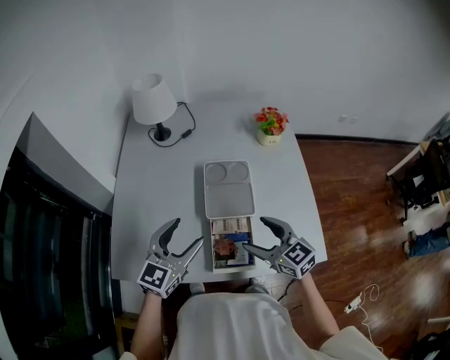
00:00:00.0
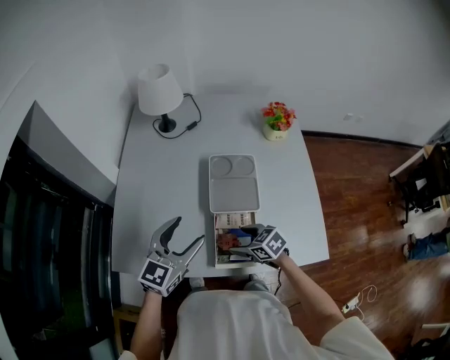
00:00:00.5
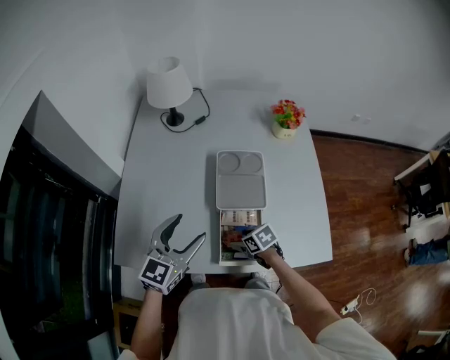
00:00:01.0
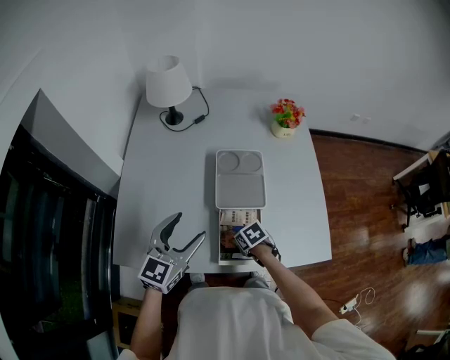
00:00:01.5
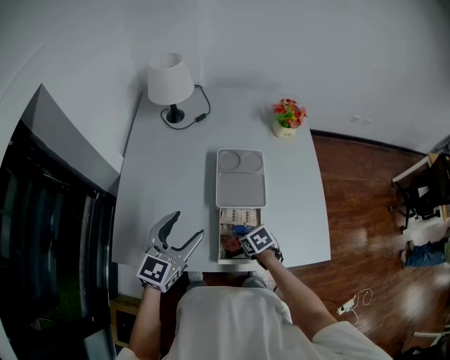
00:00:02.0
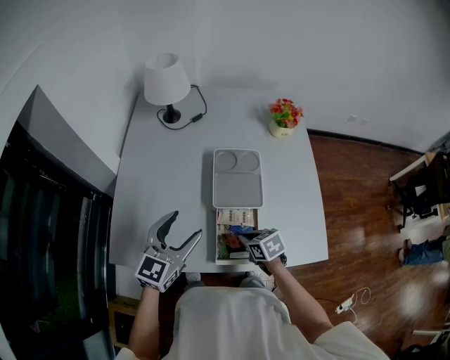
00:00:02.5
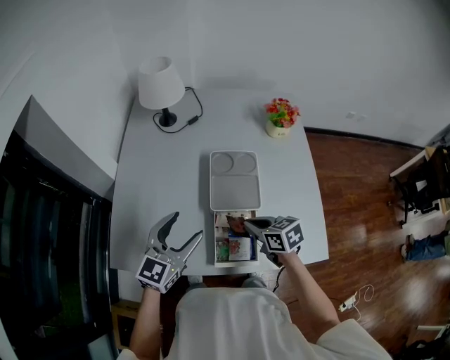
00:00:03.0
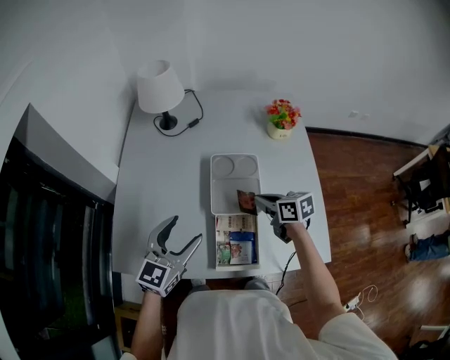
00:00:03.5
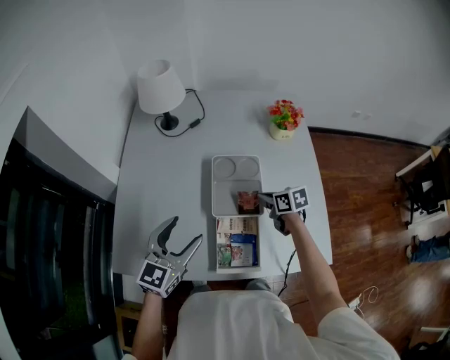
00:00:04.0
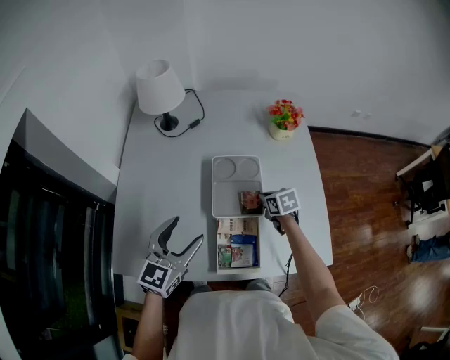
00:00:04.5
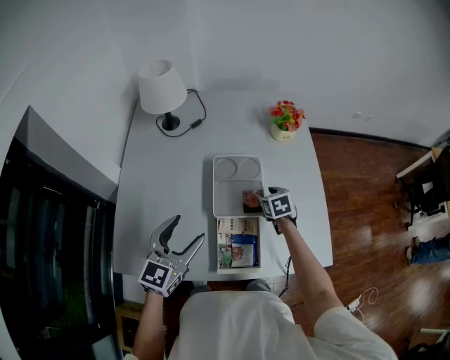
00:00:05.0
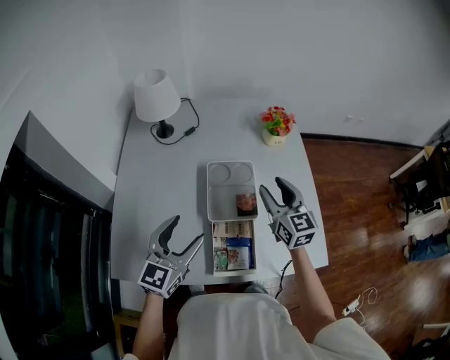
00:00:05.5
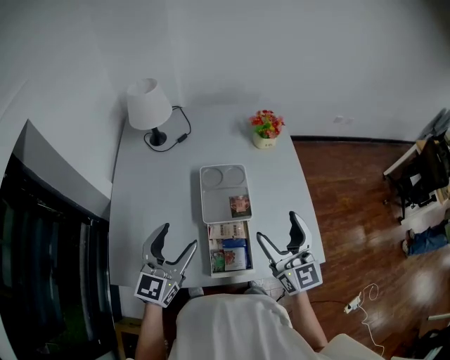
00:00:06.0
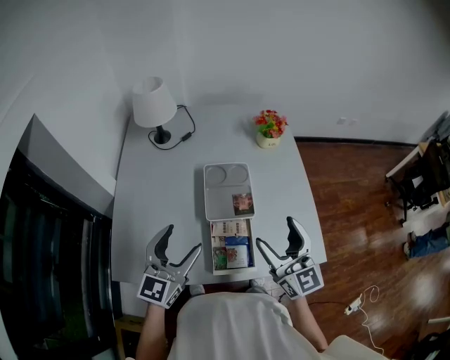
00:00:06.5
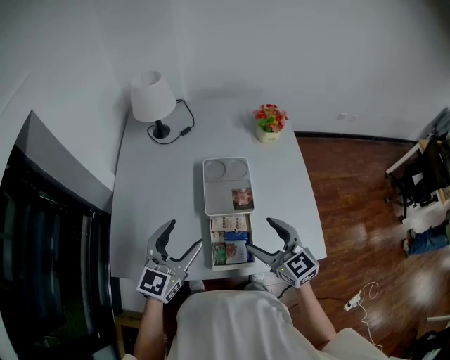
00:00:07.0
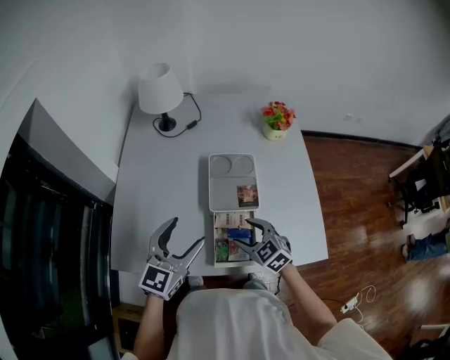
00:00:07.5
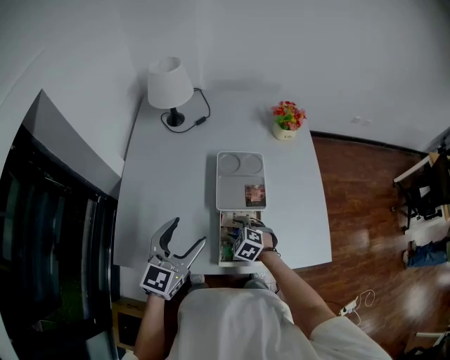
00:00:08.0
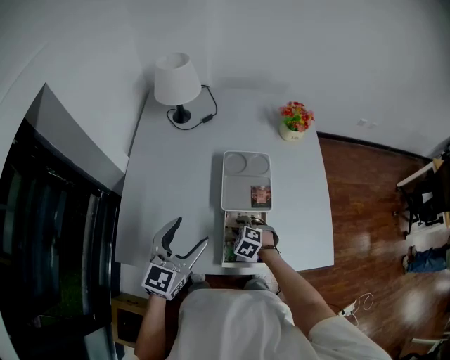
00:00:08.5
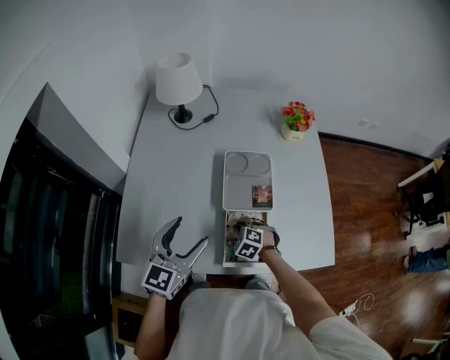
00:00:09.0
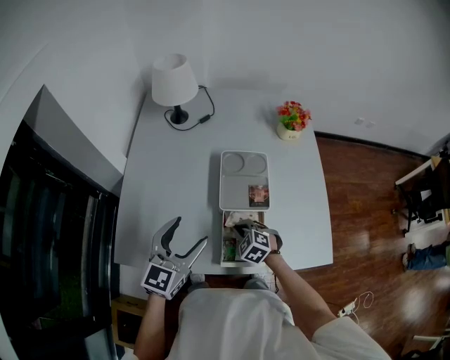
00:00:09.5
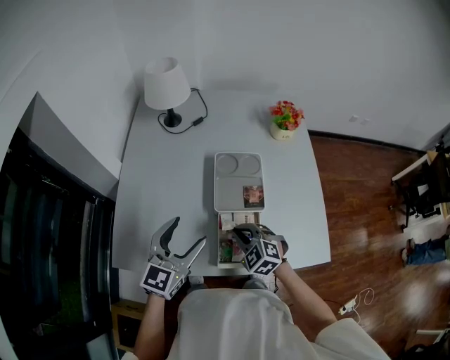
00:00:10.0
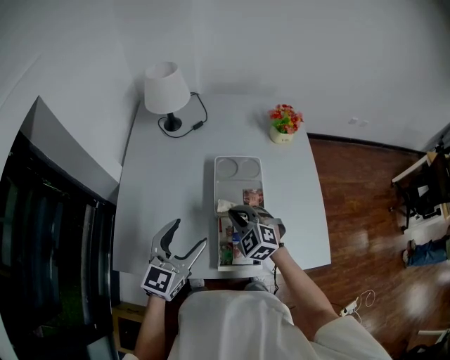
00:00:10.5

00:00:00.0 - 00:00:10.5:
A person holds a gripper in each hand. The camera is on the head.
00:00:00.0 - 00:00:02.0: The right gripper travels downward by some 25 cm, points its fingers some 40 degrees further downward, and closes.
00:00:02.0 - 00:00:04.0: The right gripper goes approximately 20 cm forward, to the right and upward, and turns by some 30 degrees.
00:00:04.0 - 00:00:06.5: The right gripper heads upward and backward, covering some 30 cm, tips its fingers upward by about 50 degrees, and opens its fingers. Meanwhile the left gripper moves roughly 5 cm.
00:00:06.5 - 00:00:08.5: The left gripper moves about 5 cm, while the right gripper heads downward, covering approximately 35 cm, tips its fingers downward by some 70 degrees, and closes its fingers.
00:00:08.5 - 00:00:10.5: The right gripper shifts some 15 cm upward, and rotates approximately 30 degrees.

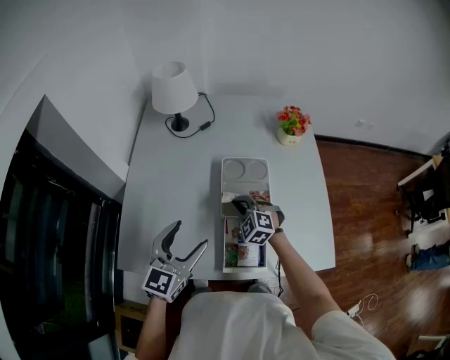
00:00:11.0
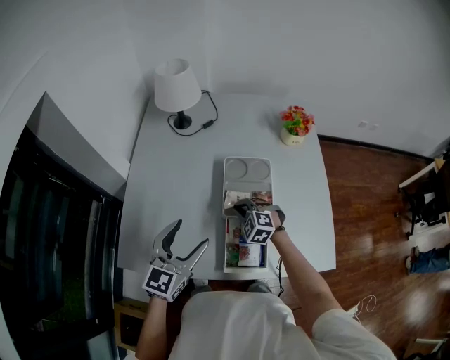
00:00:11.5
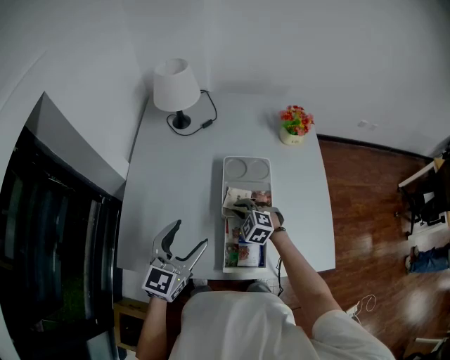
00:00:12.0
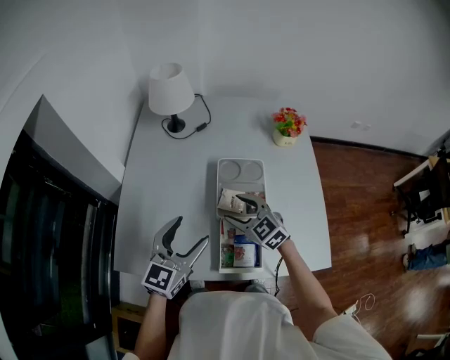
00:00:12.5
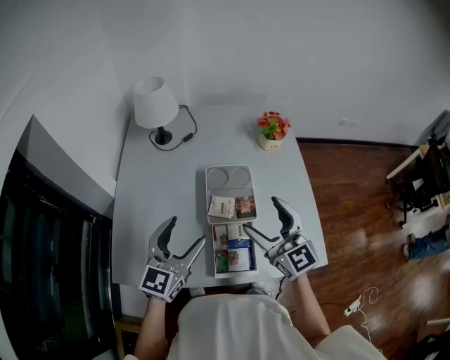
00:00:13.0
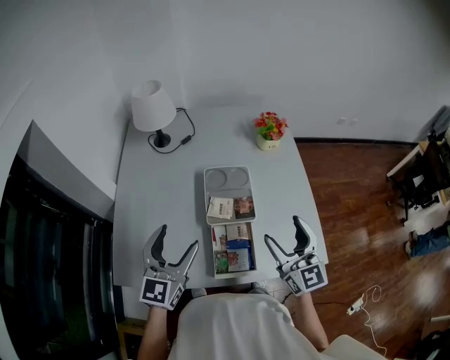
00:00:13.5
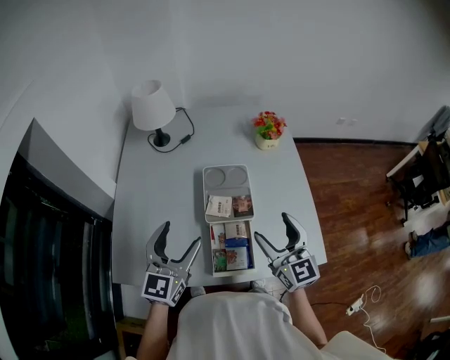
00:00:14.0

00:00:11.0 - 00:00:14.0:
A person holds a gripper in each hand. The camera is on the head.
00:00:11.0 - 00:00:12.5: The right gripper goes about 5 cm upward, turns by some 30 degrees, and opens its fingers.
00:00:12.5 - 00:00:14.0: The right gripper goes about 20 cm to the right, upward and backward, and swivels roughly 40 degrees.

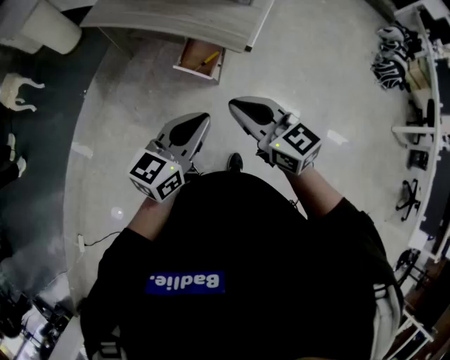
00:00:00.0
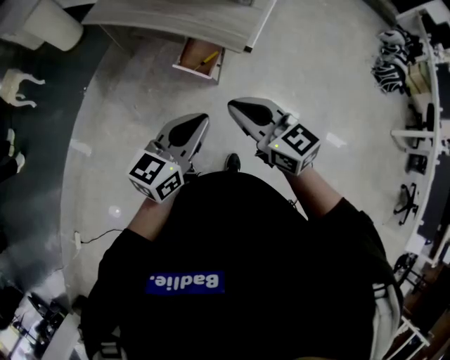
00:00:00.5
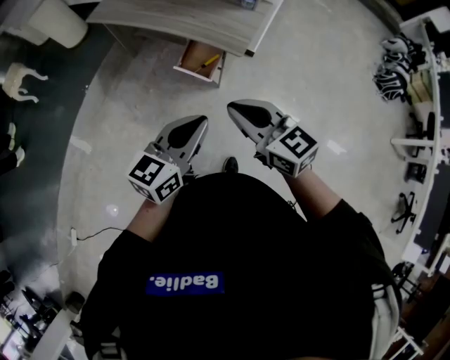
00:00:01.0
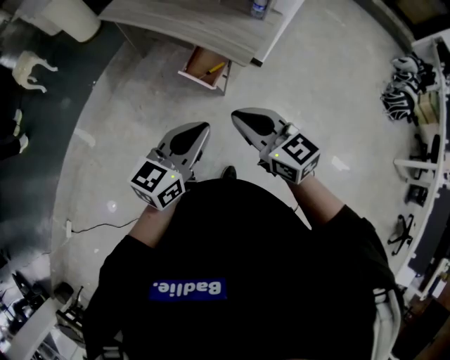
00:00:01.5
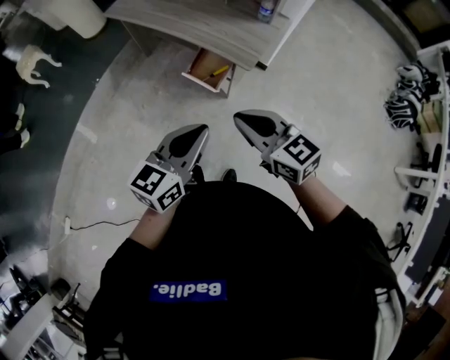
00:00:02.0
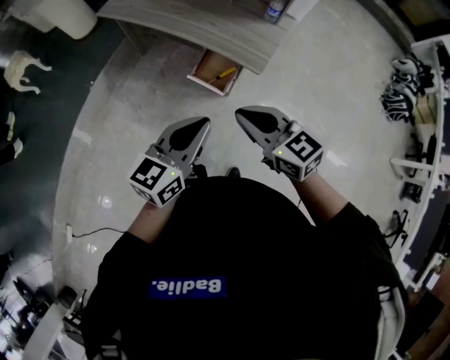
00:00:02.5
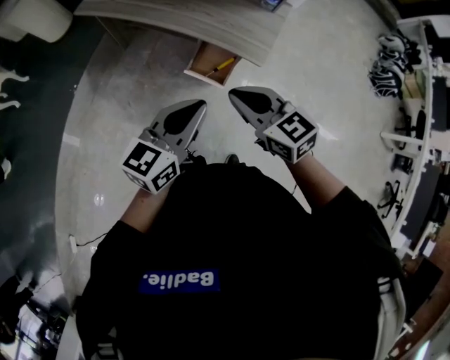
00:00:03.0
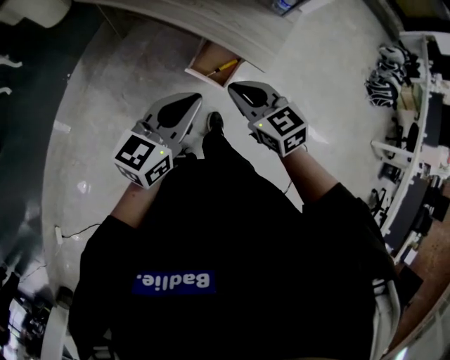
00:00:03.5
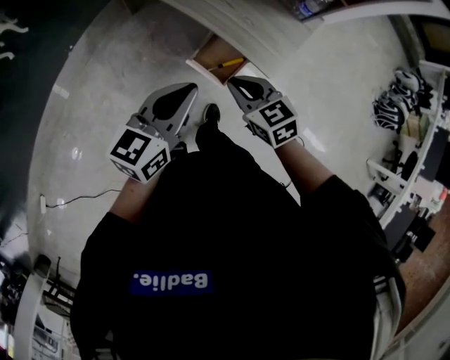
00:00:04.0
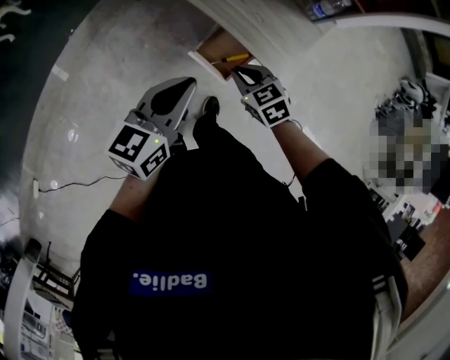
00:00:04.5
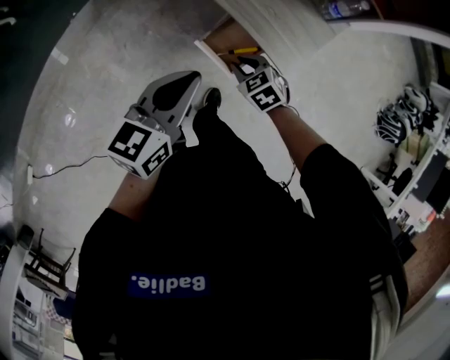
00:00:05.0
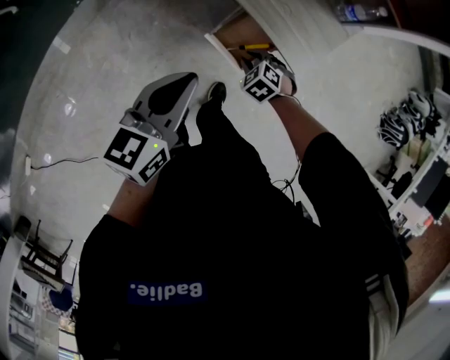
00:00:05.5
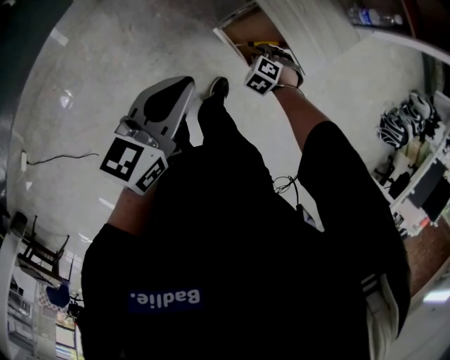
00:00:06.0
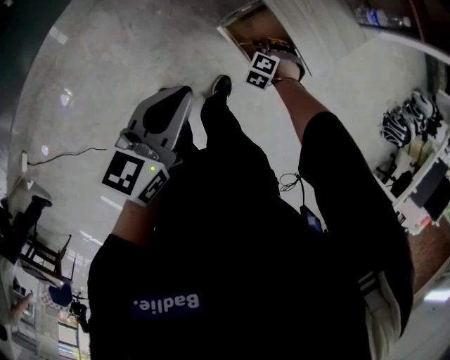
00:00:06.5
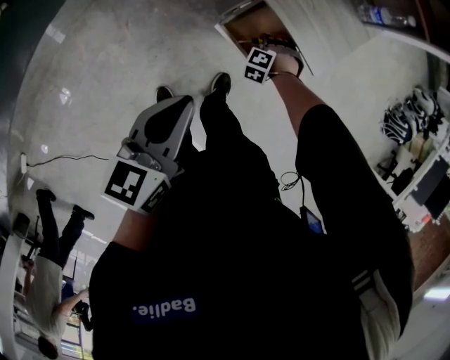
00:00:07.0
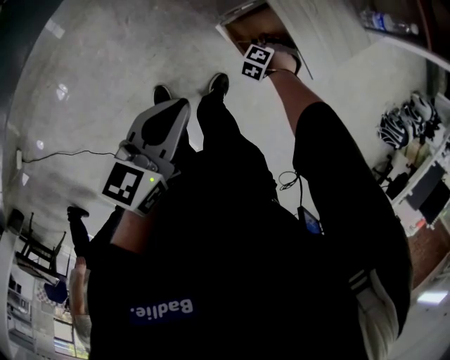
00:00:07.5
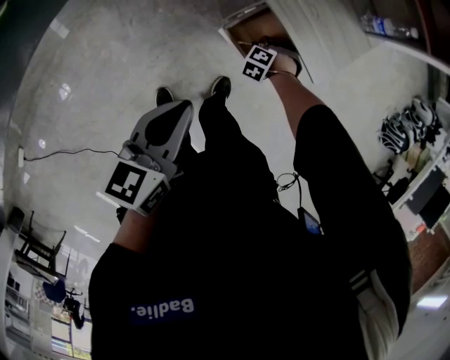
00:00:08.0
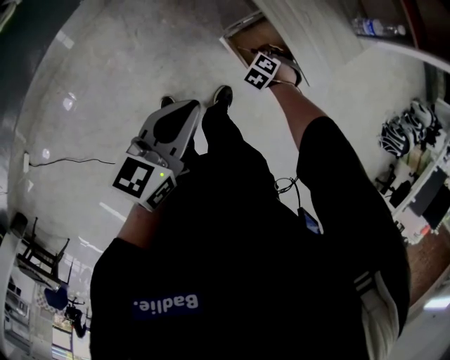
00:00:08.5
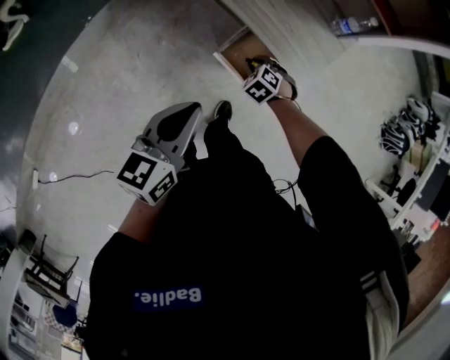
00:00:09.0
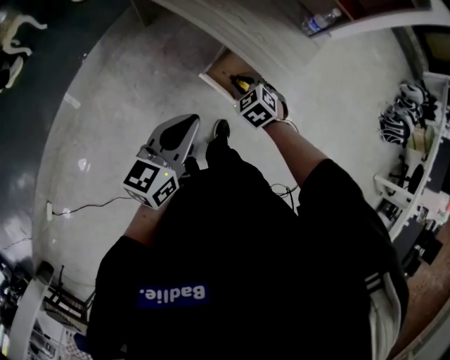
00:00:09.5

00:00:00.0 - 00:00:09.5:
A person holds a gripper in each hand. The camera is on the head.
00:00:00.0 - 00:00:02.0: The right gripper changes place by approximately 5 cm.
00:00:02.0 - 00:00:04.0: The left gripper is displaced forward and to the left by some 25 cm, while the right gripper travels forward, downward and to the left by roughly 30 cm, and turns by about 20 degrees.
00:00:04.0 - 00:00:05.5: The right gripper heads downward, covering approximately 25 cm, and turns by about 40 degrees. The left gripper goes about 5 cm downward.
00:00:05.5 - 00:00:07.5: The left gripper shifts some 5 cm downward. Meanwhile the right gripper shifts some 15 cm downward, and rotates approximately 40 degrees.
00:00:07.5 - 00:00:09.5: The left gripper shifts some 10 cm upward. Meanwhile the right gripper is displaced upward by about 25 cm, and swivels some 50 degrees.

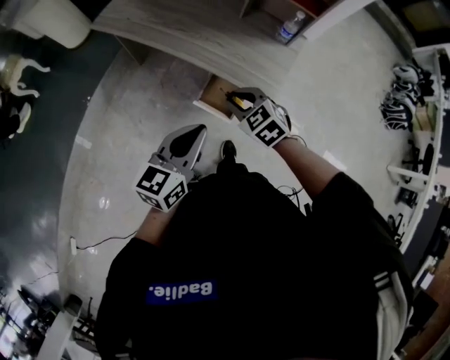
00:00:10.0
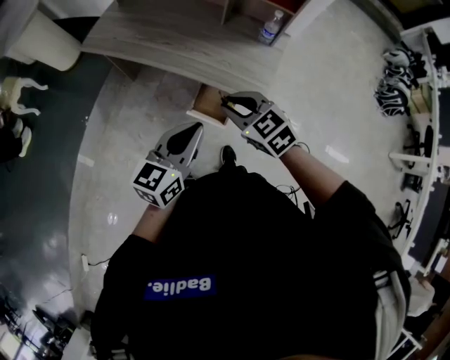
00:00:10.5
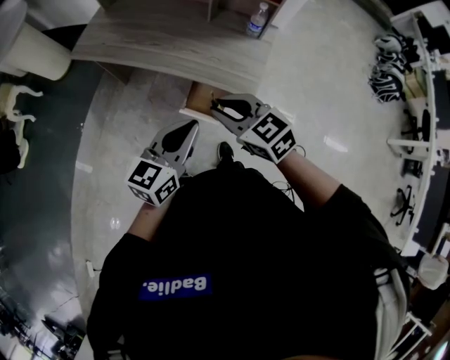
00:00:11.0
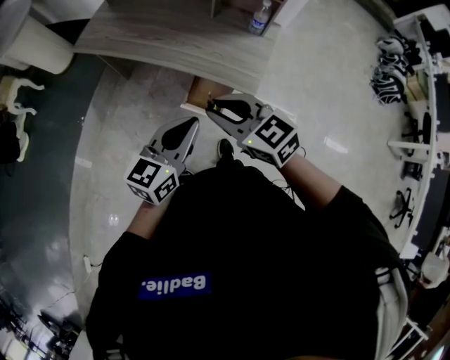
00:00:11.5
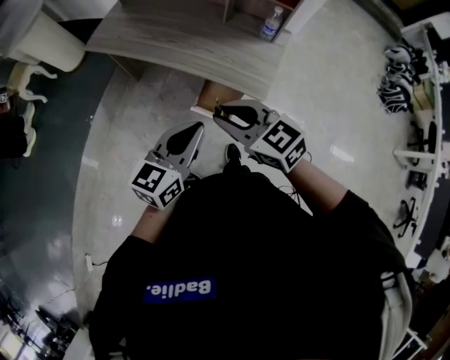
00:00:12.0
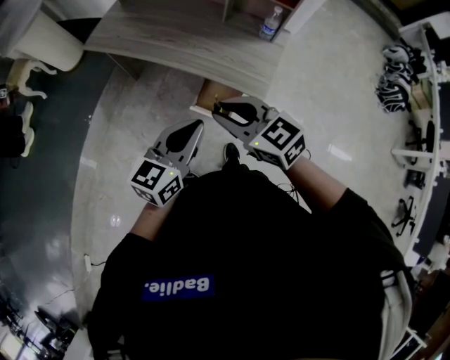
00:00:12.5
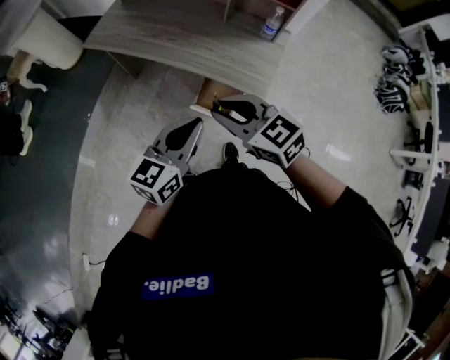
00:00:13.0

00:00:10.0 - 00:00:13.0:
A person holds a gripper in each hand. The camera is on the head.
00:00:10.0 - 00:00:11.5: The right gripper heads upward and backward, covering roughly 15 cm, and changes its angle by roughly 30 degrees.
00:00:11.5 - 00:00:13.0: The grippers stay close to where they were, moving slightly.
